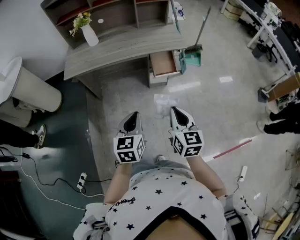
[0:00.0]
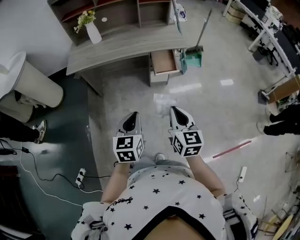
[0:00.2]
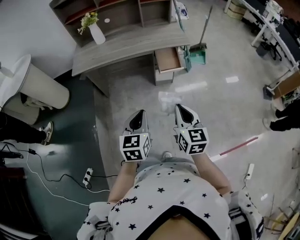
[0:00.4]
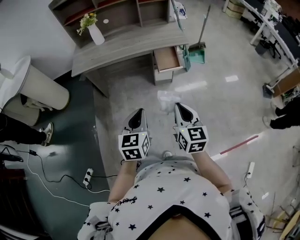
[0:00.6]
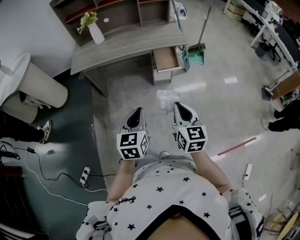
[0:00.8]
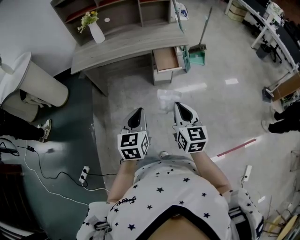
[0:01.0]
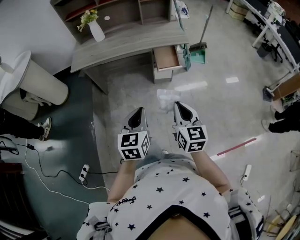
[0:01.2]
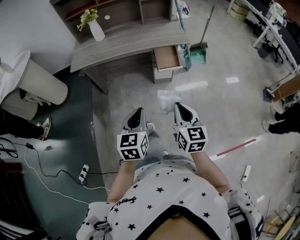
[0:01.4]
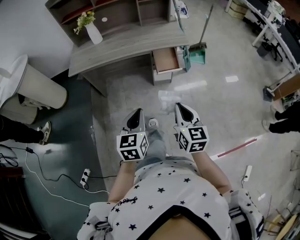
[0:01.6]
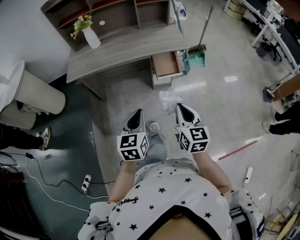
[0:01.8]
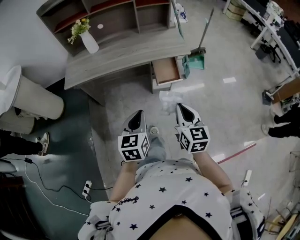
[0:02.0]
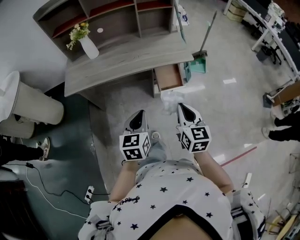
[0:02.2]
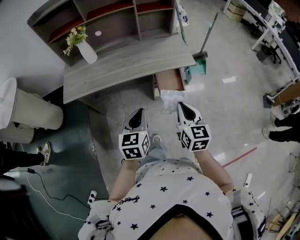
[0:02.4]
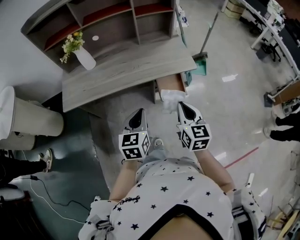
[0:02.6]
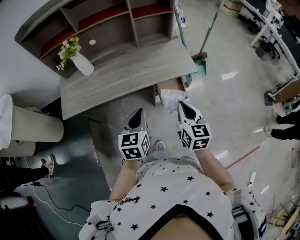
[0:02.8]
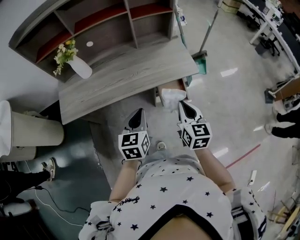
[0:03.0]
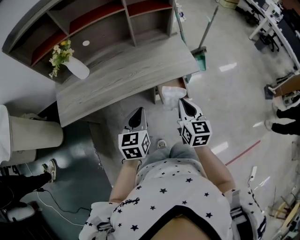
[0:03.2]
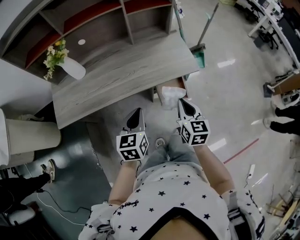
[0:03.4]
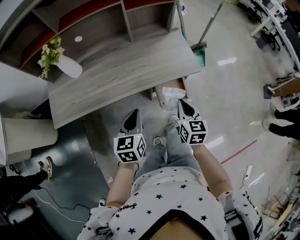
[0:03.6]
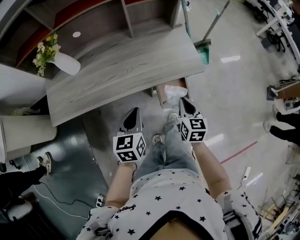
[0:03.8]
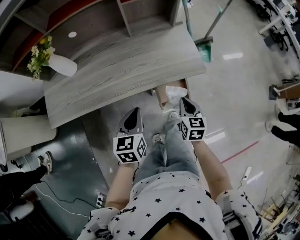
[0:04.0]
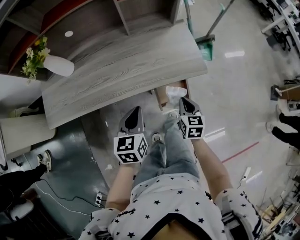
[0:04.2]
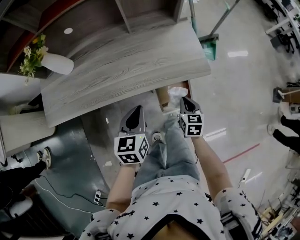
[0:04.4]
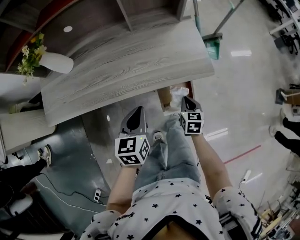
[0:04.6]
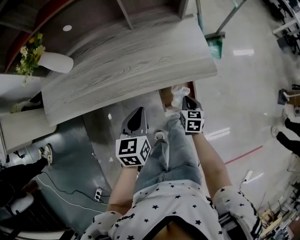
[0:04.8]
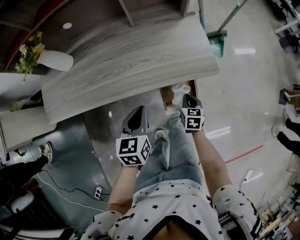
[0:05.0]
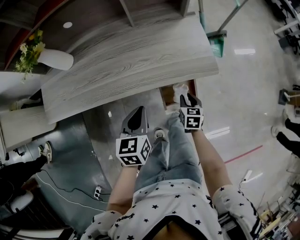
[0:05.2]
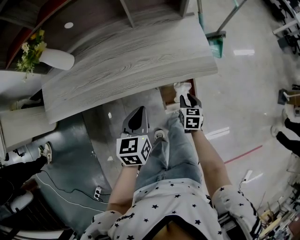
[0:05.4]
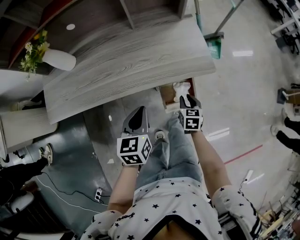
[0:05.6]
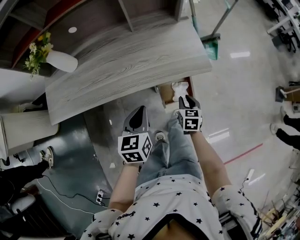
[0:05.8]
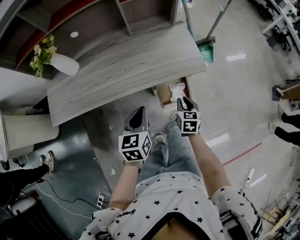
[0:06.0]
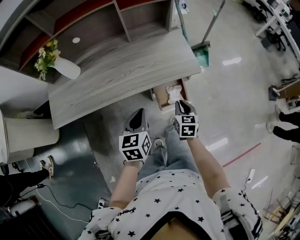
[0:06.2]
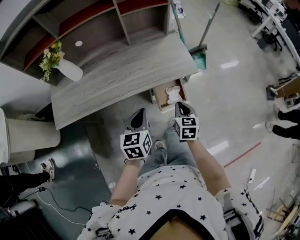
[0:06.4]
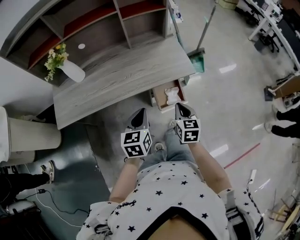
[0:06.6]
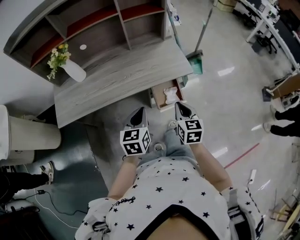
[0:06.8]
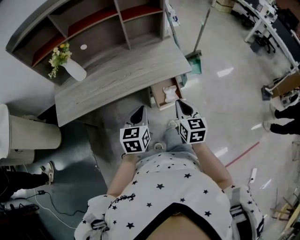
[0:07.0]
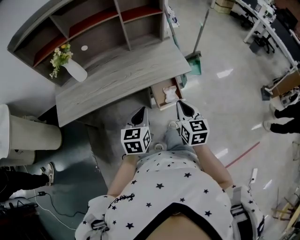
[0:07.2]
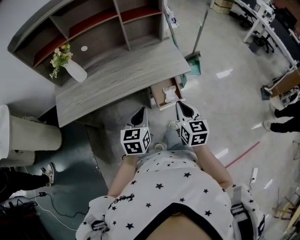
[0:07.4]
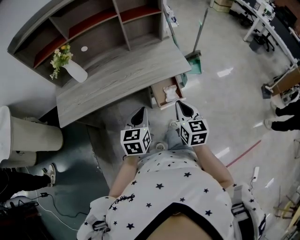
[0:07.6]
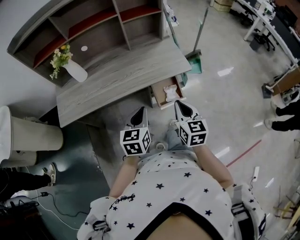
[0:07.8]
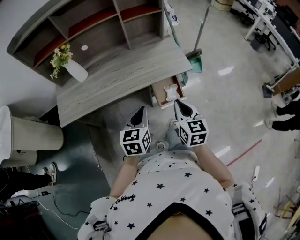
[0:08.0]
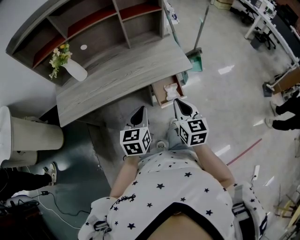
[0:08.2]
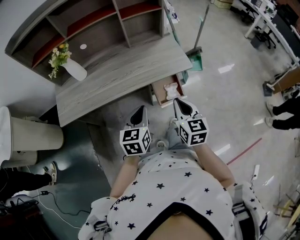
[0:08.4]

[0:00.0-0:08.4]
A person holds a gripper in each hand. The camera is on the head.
0:00.0 to 0:01.4: The left gripper heads backward, covering some 5 cm.
0:01.4 to 0:02.8: Both grippers travel together forward, approximately 35 cm.
0:02.8 to 0:04.2: The right gripper moves downward and forward, approximately 25 cm, while the left gripper heads forward and downward, covering about 20 cm.
0:04.2 to 0:05.6: The right gripper shifts about 10 cm downward, and opens up.
0:05.6 to 0:07.0: The right gripper goes some 30 cm upward and backward, turns by some 20 degrees, and closes; the left gripper shifts approximately 15 cm backward and upward.
0:07.0 to 0:08.4: The grippers move only a little.

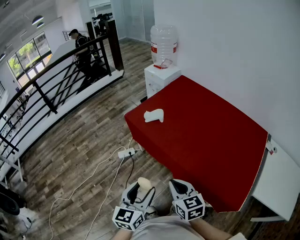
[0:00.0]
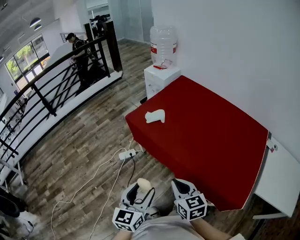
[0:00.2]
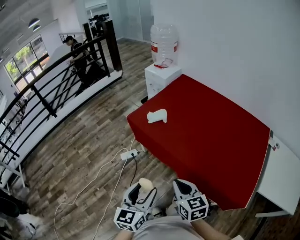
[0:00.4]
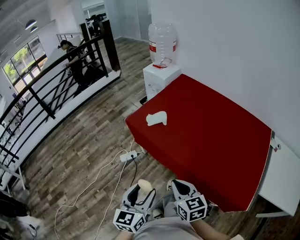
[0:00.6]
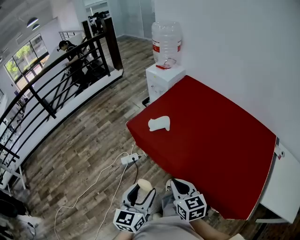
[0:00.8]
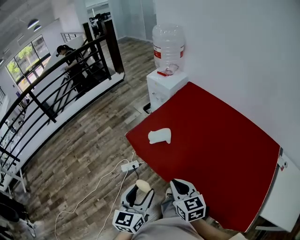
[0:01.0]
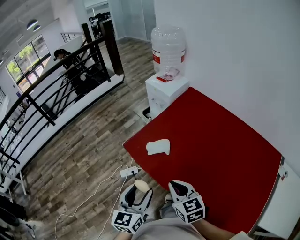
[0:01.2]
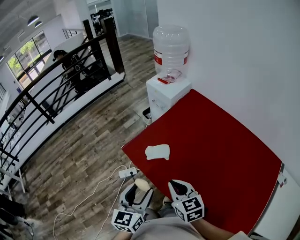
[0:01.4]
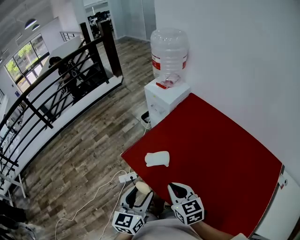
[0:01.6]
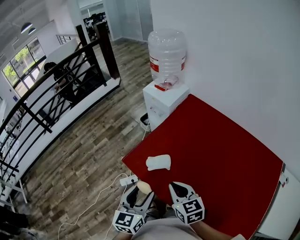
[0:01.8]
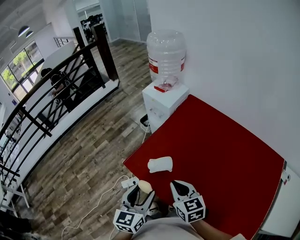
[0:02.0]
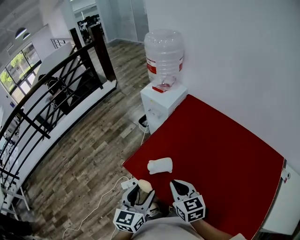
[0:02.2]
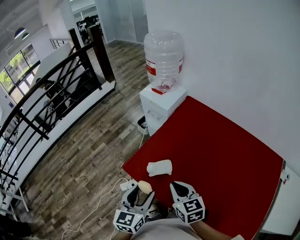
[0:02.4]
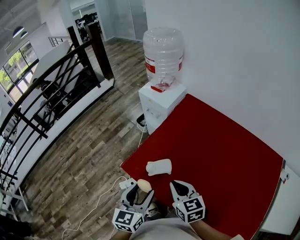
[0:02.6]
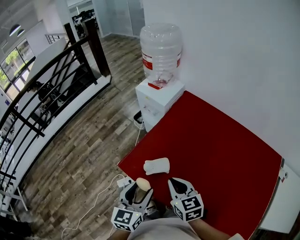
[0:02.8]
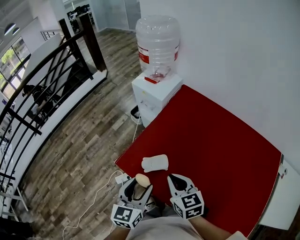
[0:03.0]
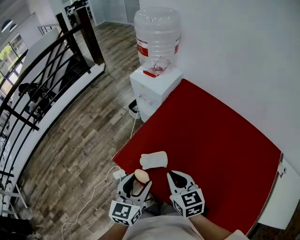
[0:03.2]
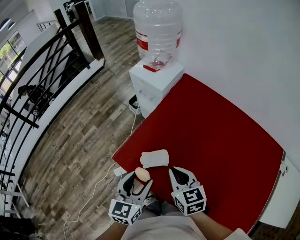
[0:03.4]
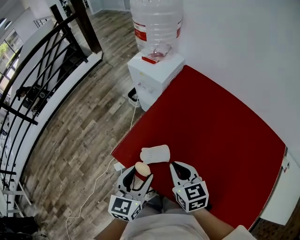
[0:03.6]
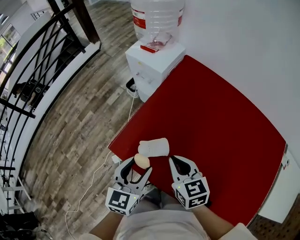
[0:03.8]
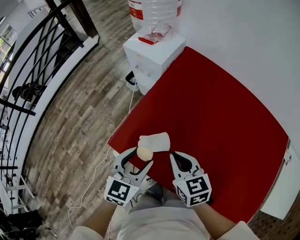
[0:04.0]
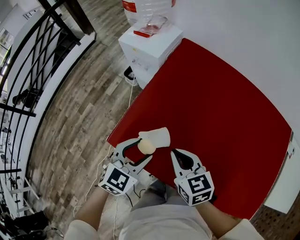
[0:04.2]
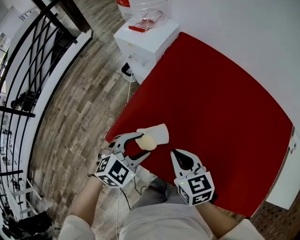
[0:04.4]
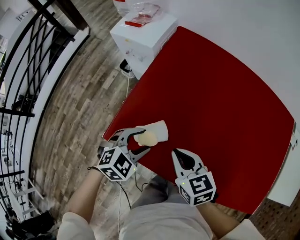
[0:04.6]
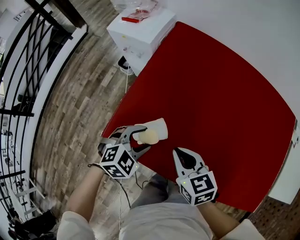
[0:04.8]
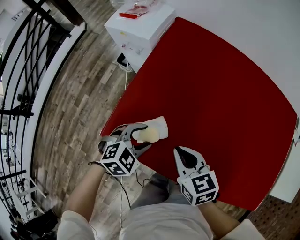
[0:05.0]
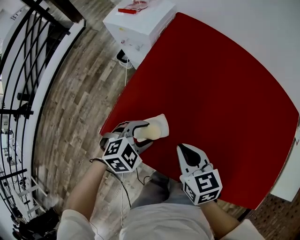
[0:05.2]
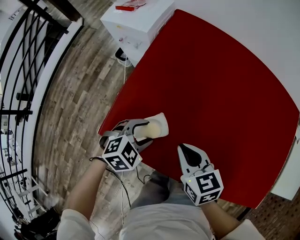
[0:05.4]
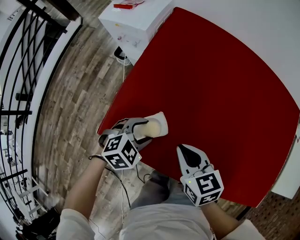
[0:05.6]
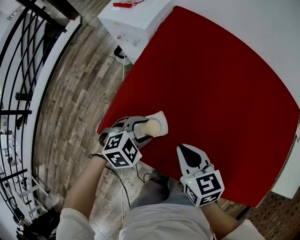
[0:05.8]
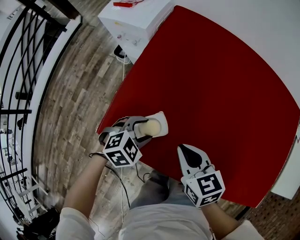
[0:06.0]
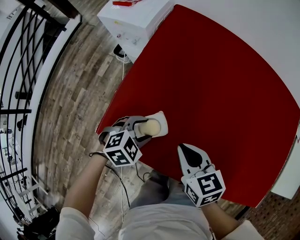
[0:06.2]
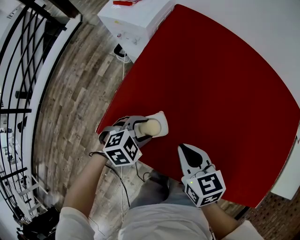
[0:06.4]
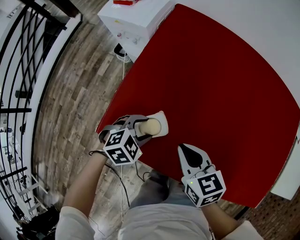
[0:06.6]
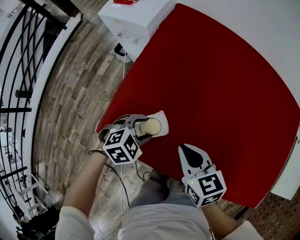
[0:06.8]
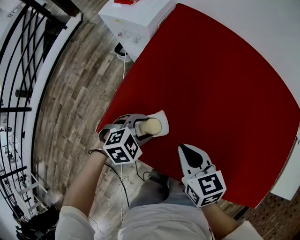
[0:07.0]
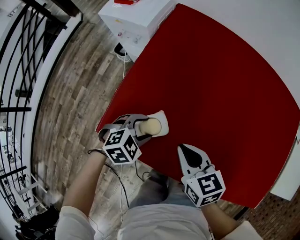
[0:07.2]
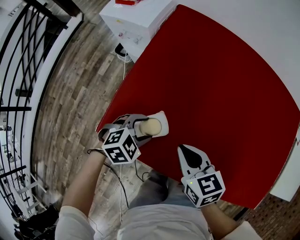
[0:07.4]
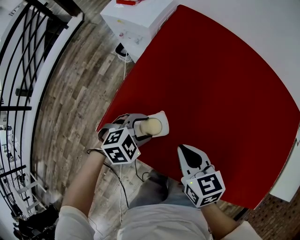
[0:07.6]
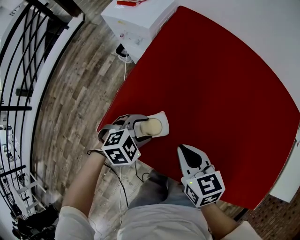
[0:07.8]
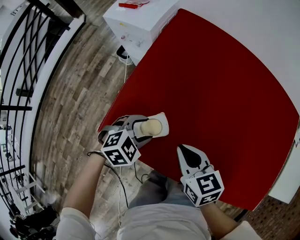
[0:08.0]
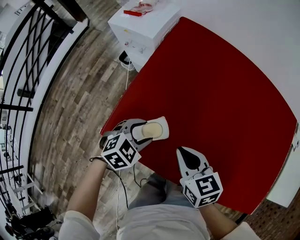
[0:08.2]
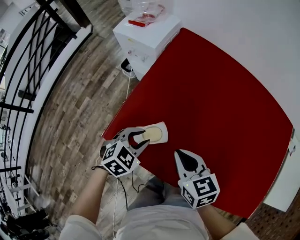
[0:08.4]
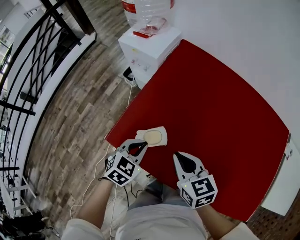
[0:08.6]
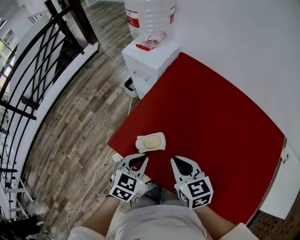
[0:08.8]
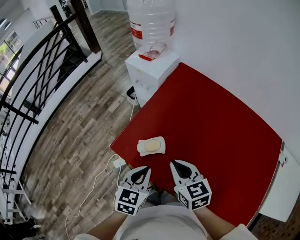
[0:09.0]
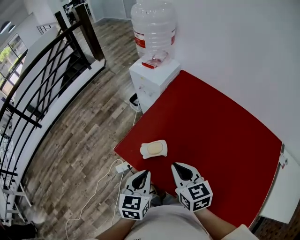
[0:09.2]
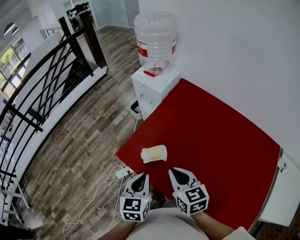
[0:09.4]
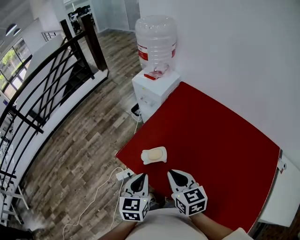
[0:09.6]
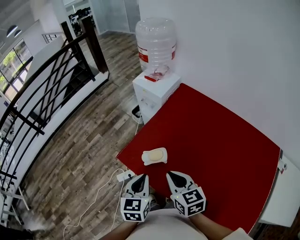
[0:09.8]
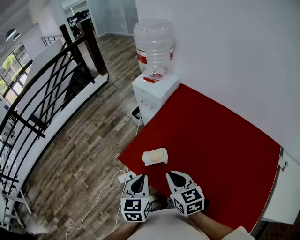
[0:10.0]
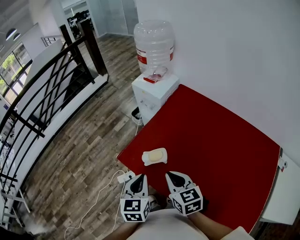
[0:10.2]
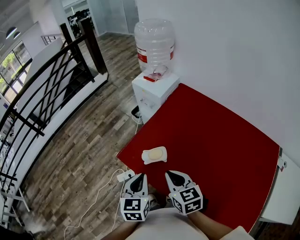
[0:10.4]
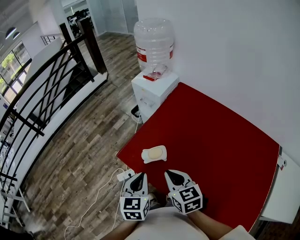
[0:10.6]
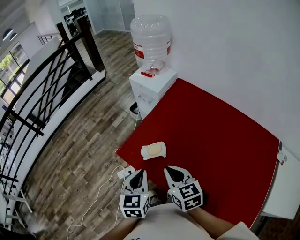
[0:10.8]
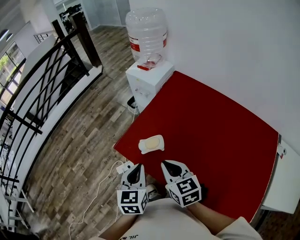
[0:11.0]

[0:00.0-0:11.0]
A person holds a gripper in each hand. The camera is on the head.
0:00.0 to 0:01.6: The two grippers go roughly 35 cm forward.
0:01.6 to 0:03.2: The two grippers go approximately 10 cm forward.
0:03.2 to 0:04.8: The right gripper shifts some 10 cm downward, while the left gripper shifts approximately 20 cm downward and forward, and tilts its fingers about 30 degrees downward.
0:04.8 to 0:06.2: The left gripper travels downward by some 10 cm.
0:06.2 to 0:07.8: The two grippers keep their place.
0:07.8 to 0:09.4: Both grippers move upward, approximately 20 cm. The left gripper tilts its fingers approximately 30 degrees upward, and closes.
0:09.4 to 0:11.0: There are only small adjustments of the grippers.

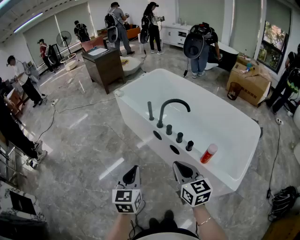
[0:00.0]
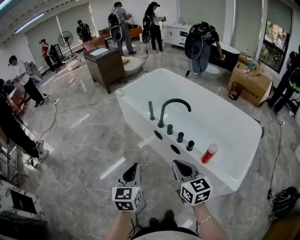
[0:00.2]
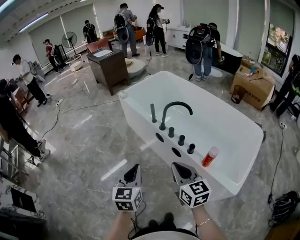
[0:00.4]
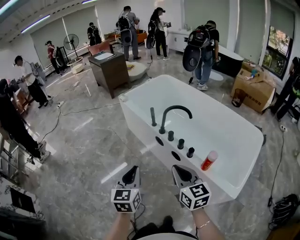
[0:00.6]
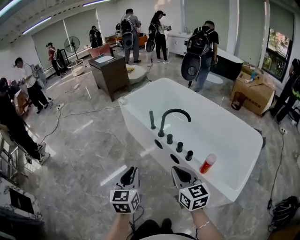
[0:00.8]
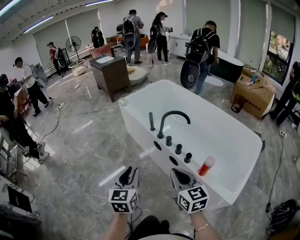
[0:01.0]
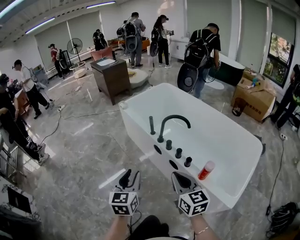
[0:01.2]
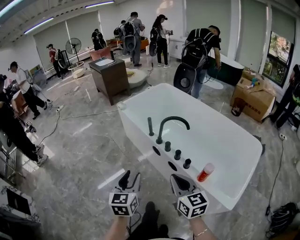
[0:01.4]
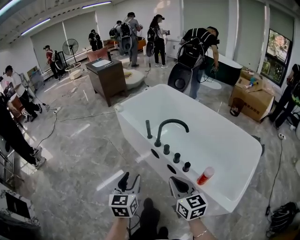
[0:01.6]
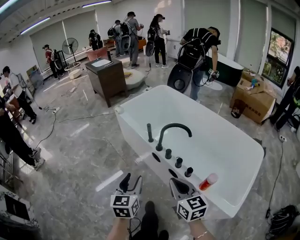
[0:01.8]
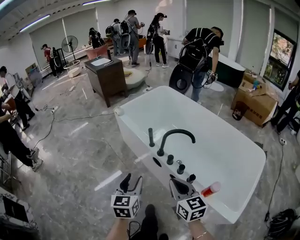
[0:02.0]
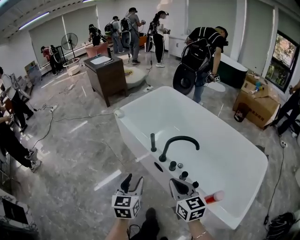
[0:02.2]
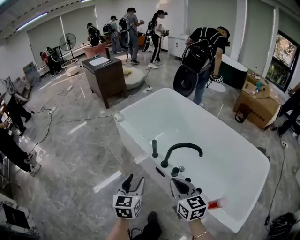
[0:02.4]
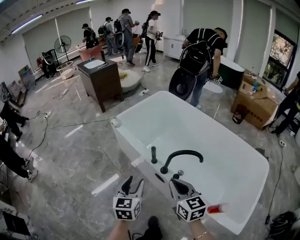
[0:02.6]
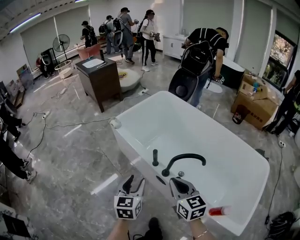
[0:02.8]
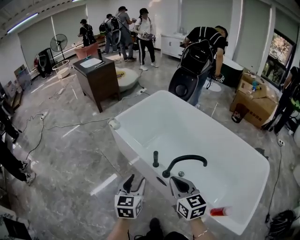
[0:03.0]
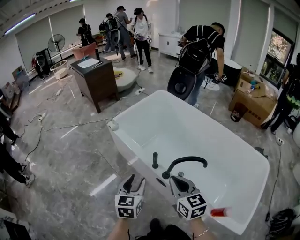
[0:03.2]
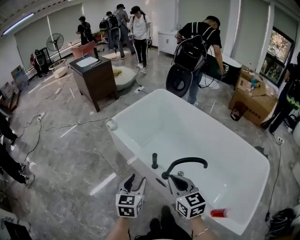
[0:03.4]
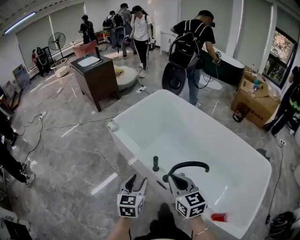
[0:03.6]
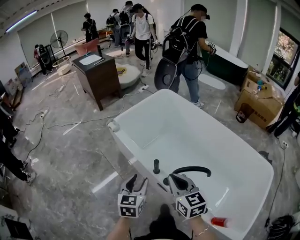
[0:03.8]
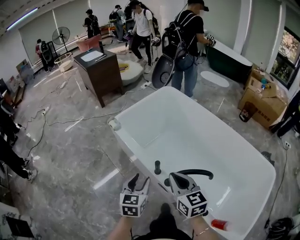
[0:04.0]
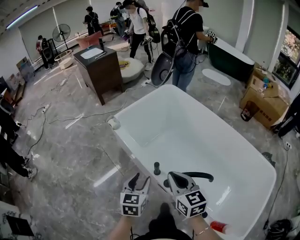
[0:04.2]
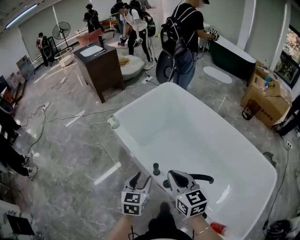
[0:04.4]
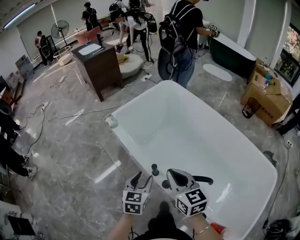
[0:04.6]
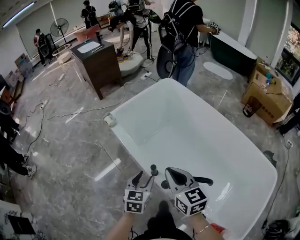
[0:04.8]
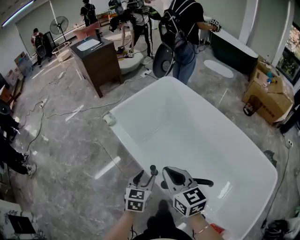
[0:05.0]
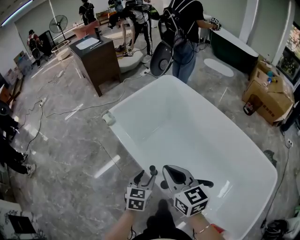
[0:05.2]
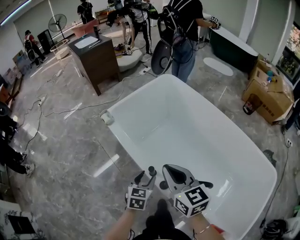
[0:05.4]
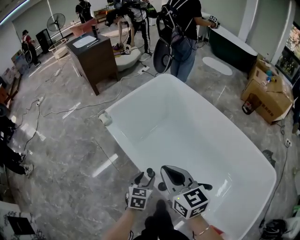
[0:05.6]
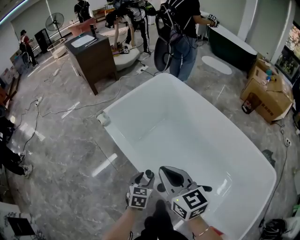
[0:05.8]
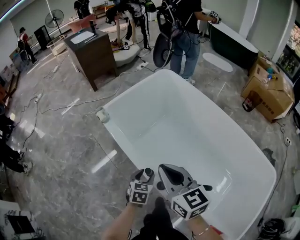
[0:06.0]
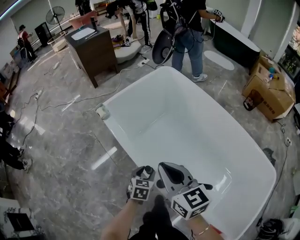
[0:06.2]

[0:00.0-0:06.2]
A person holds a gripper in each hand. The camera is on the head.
0:00.0 to 0:01.6: Both grippers move forward and to the right, approximately 10 cm. The left gripper opens.
0:01.6 to 0:03.2: The two grippers travel together, forward, some 50 cm.
0:03.2 to 0:04.6: The left gripper shifts some 25 cm forward, to the right and downward. Meanwhile the right gripper moves forward, approximately 25 cm.
0:04.6 to 0:06.2: The right gripper travels forward by roughly 10 cm; the left gripper heads downward and forward, covering about 20 cm.
